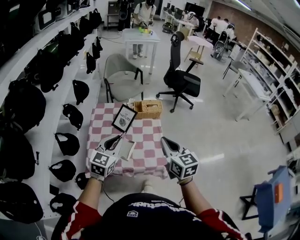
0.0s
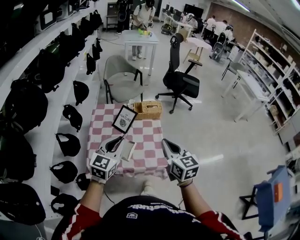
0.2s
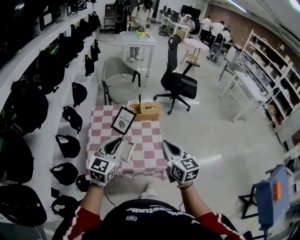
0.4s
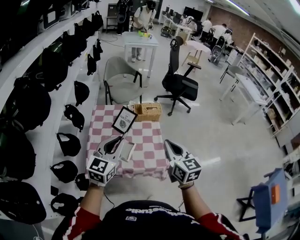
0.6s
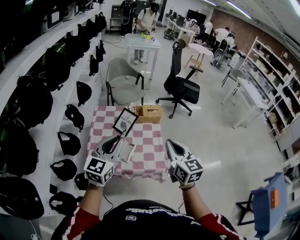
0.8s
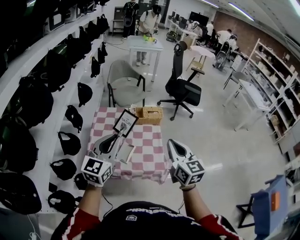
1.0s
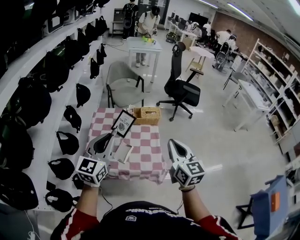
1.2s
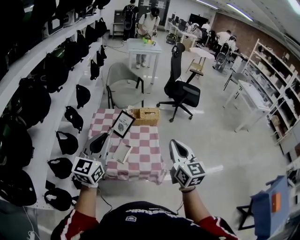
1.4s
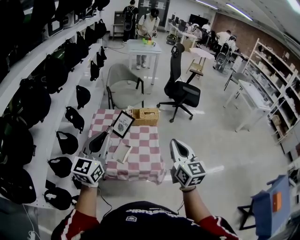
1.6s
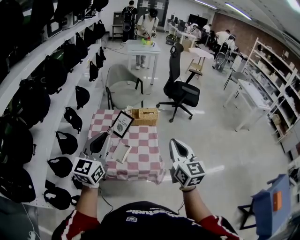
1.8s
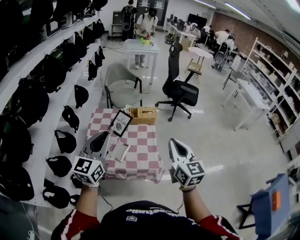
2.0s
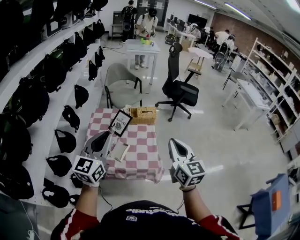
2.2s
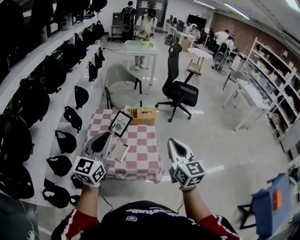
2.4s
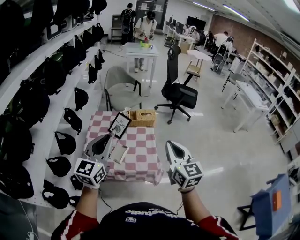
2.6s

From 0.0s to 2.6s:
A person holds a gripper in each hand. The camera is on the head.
From 0.0s to 1.2s: The right gripper is displaced upward by some 5 cm. The left gripper moves upward, some 10 cm.
From 1.2s to 2.6s: The left gripper ends up approximately 5 cm from where it was. Meanwhile the right gripper shifts by approximately 5 cm.

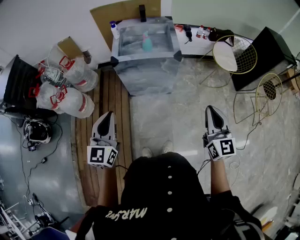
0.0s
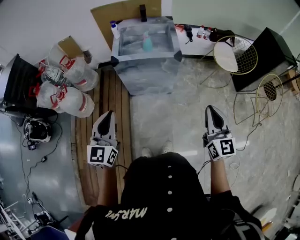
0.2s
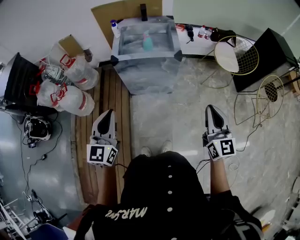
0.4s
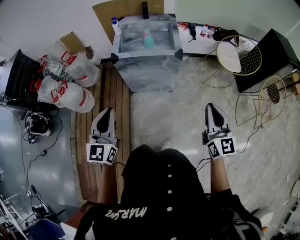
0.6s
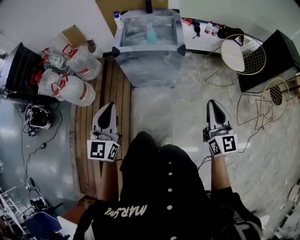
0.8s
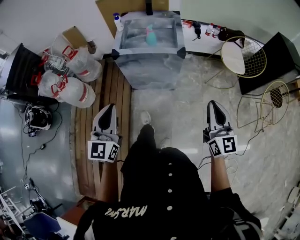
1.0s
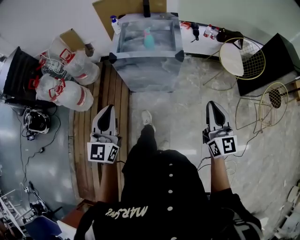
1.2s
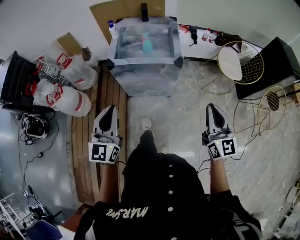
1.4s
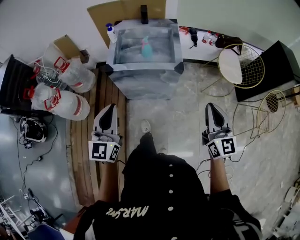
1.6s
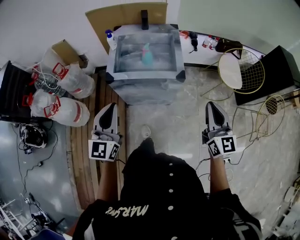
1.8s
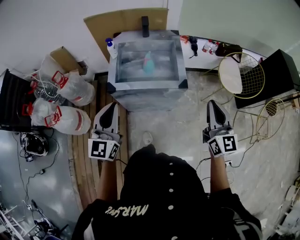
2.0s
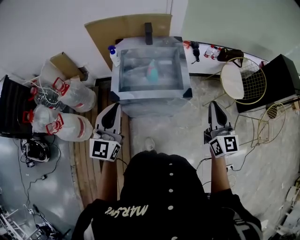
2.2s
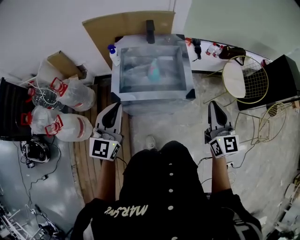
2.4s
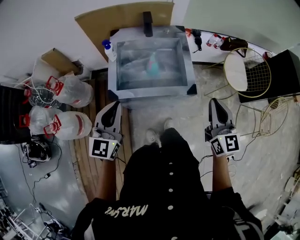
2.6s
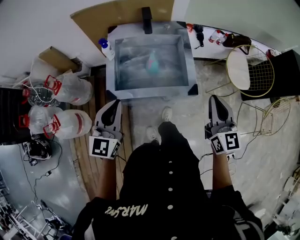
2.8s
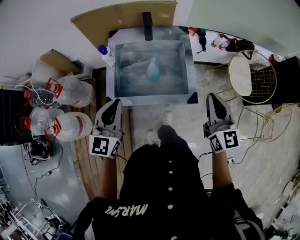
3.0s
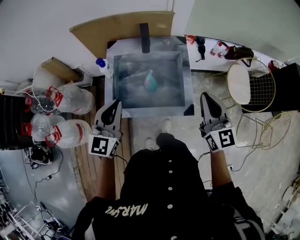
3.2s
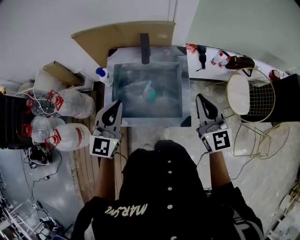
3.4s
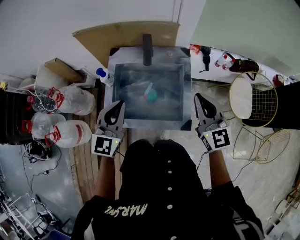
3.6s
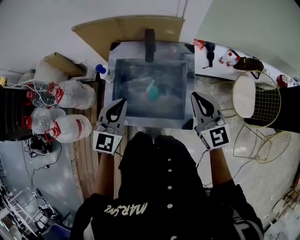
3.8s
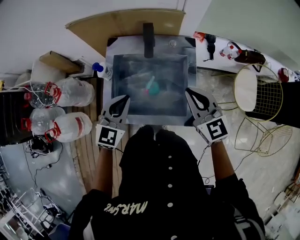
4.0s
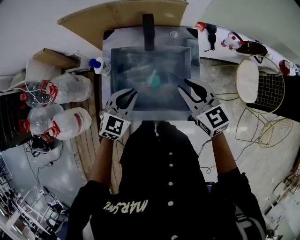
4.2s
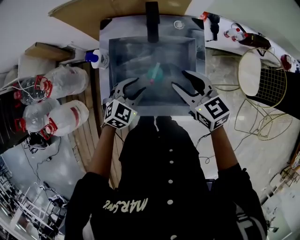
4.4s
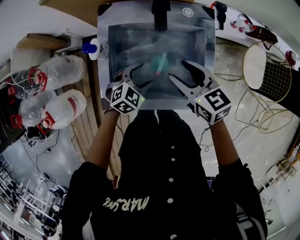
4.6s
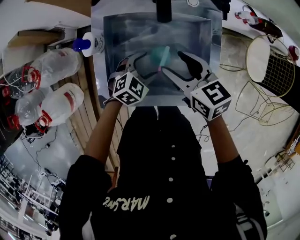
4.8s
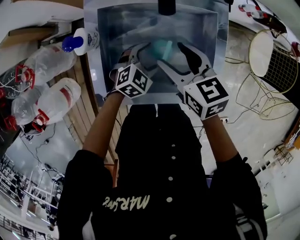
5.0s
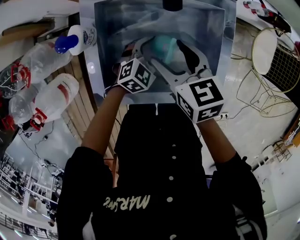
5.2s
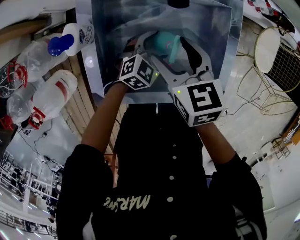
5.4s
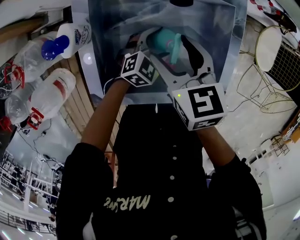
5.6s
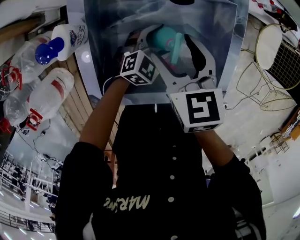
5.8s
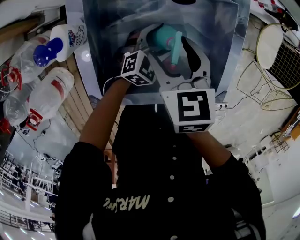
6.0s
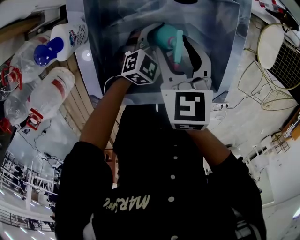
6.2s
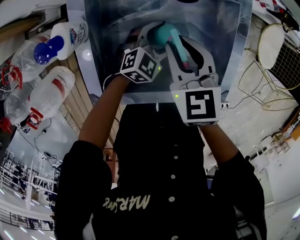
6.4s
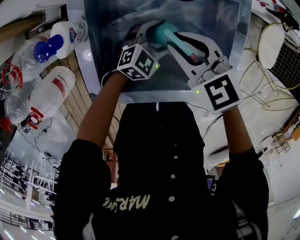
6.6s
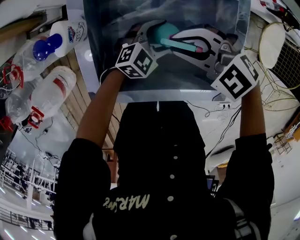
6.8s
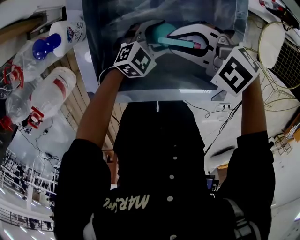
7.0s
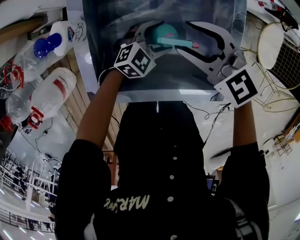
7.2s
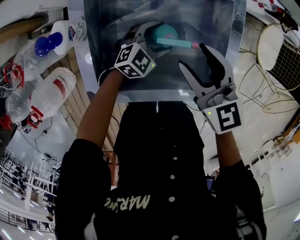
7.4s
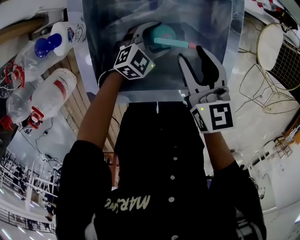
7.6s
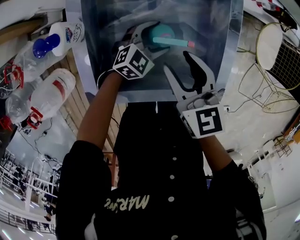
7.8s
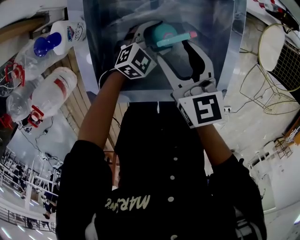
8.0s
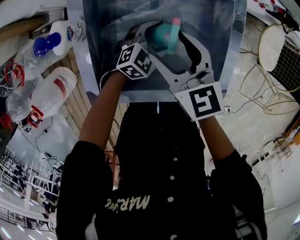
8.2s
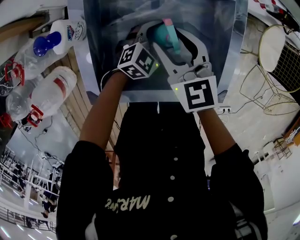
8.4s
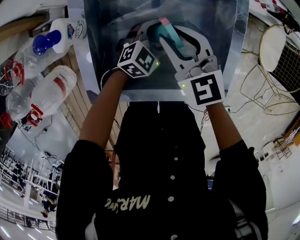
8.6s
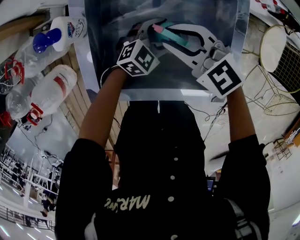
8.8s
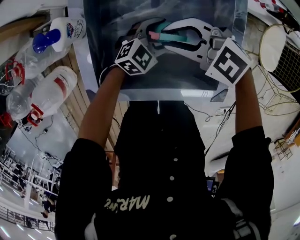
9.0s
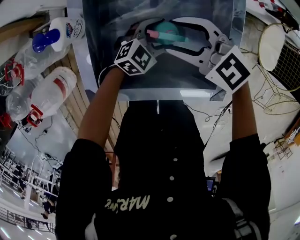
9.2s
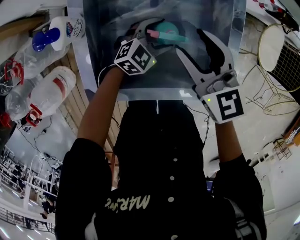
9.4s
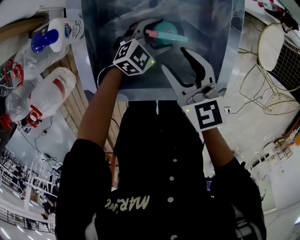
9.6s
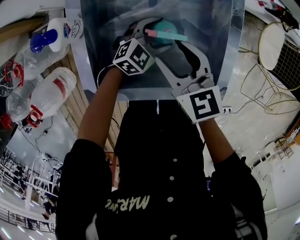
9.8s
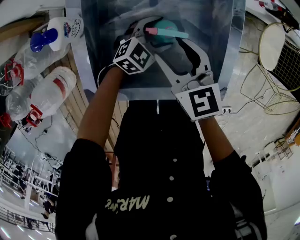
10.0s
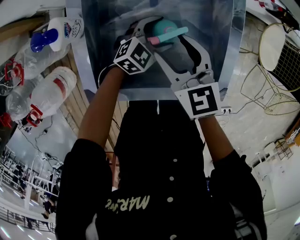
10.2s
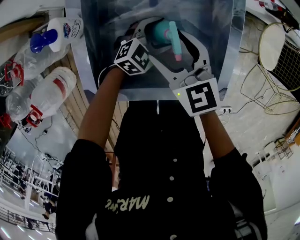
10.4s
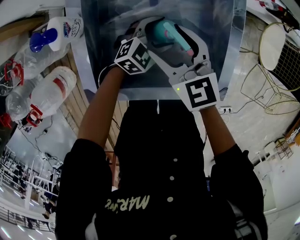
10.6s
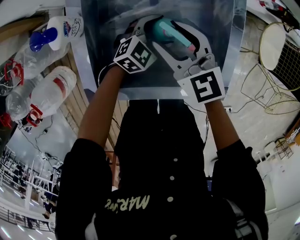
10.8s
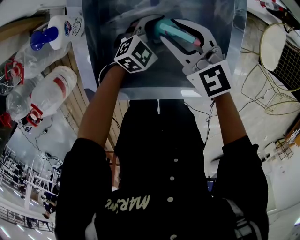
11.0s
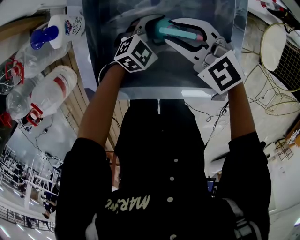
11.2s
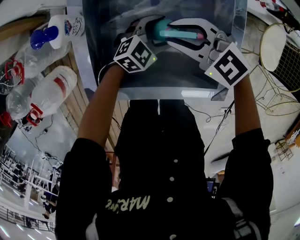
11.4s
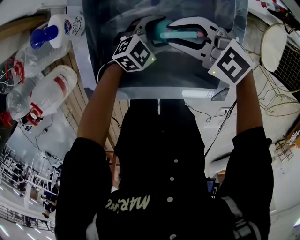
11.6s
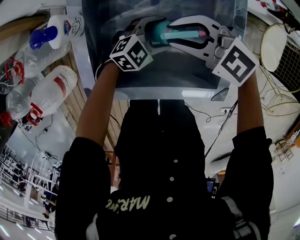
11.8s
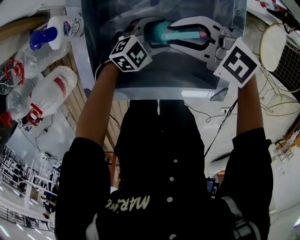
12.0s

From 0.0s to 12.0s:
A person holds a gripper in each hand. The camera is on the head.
From 0.0s to 1.6s: The right gripper goes approximately 15 cm forward. The left gripper is displaced forward and to the right by roughly 15 cm.
From 1.6s to 3.0s: Both grippers travel together forward, about 30 cm.
From 3.0s to 4.4s: The left gripper shifts some 25 cm downward and forward, points its fingers approximately 30 degrees further downward, and opens its fingers. The right gripper is displaced forward, to the left and downward by some 25 cm, changes its angle by some 40 degrees, and opens its fingers.
From 4.4s to 6.0s: The left gripper travels downward by roughly 20 cm, and opens. Meanwhile the right gripper moves downward and to the left, about 15 cm, and turns by approximately 30 degrees.
From 6.0s to 7.6s: The right gripper ends up roughly 10 cm from where it was, and closes its fingers.
From 7.6s to 9.0s: The right gripper shifts by about 10 cm, swivels about 70 degrees, and opens and closes again.
From 9.0s to 10.4s: The right gripper swivels about 50 degrees, and opens up.
From 10.4s to 12.0s: The right gripper rotates some 50 degrees, and closes.

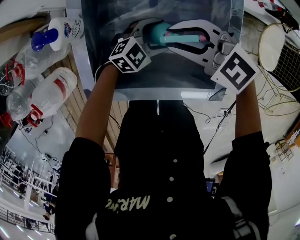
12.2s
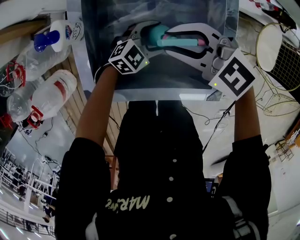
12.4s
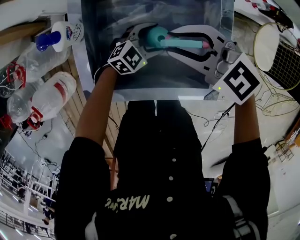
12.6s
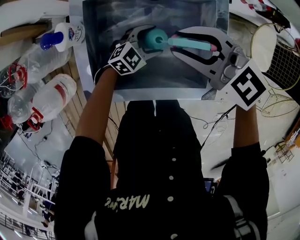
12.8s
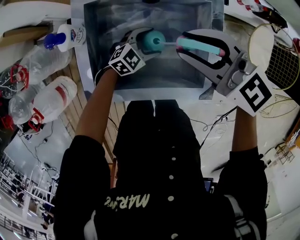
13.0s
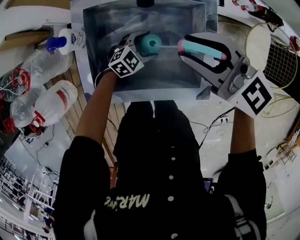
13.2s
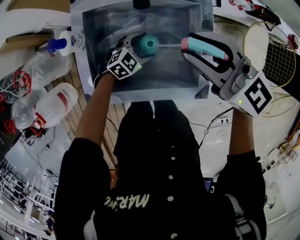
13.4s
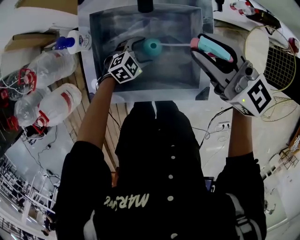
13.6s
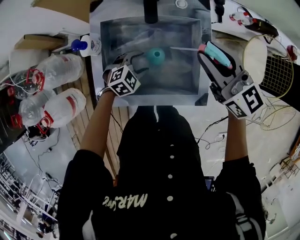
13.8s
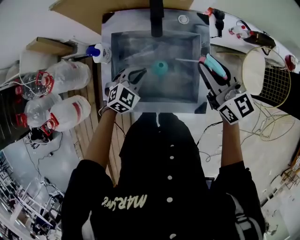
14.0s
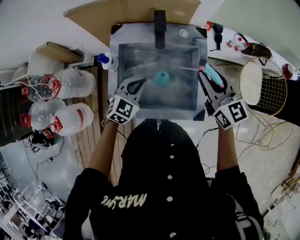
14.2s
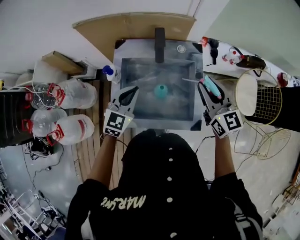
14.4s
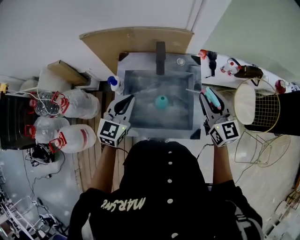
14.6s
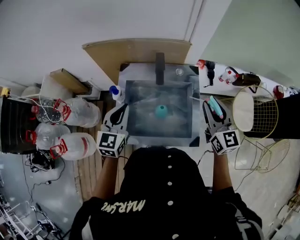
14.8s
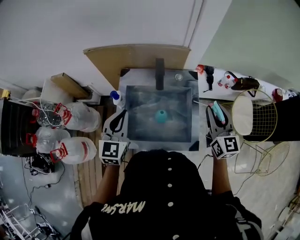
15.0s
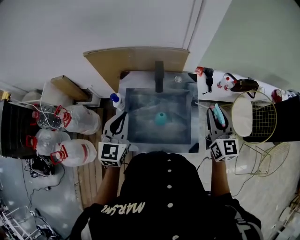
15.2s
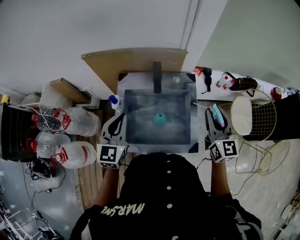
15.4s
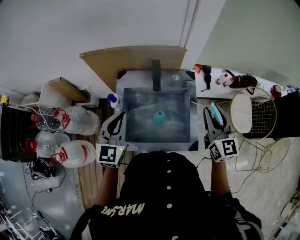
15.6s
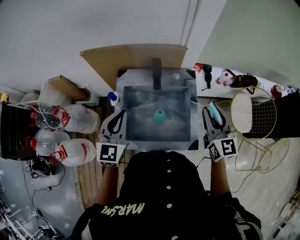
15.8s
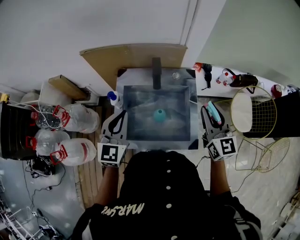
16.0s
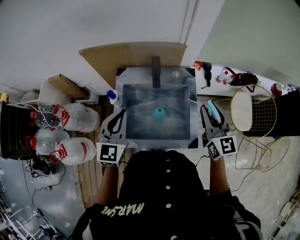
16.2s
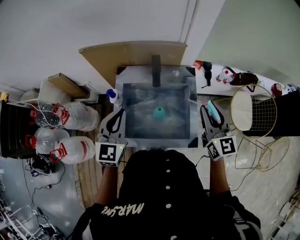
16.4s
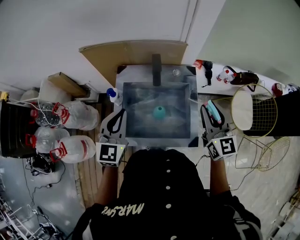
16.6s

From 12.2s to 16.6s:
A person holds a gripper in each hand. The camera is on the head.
From 12.2s to 13.6s: The right gripper moves upward, roughly 20 cm, and swivels roughly 40 degrees.
From 13.6s to 15.2s: The left gripper moves upward, roughly 35 cm, angles its fingers upward, by some 40 degrees, and closes its fingers. Meanwhile the right gripper travels to the right and upward by roughly 15 cm, and changes its angle by approximately 40 degrees.
From 15.2s to 16.6s: The grippers move only a little.

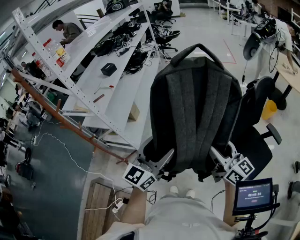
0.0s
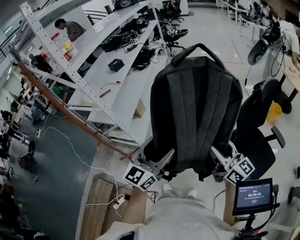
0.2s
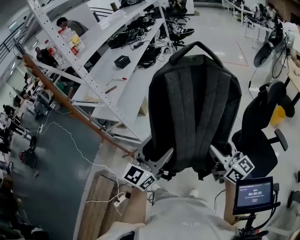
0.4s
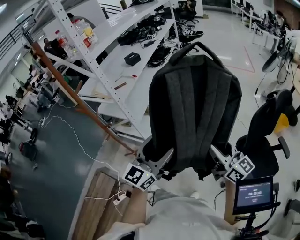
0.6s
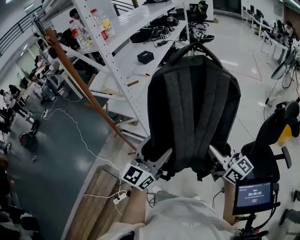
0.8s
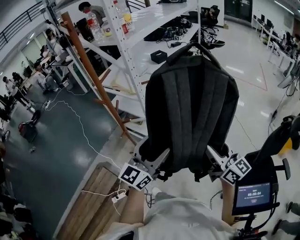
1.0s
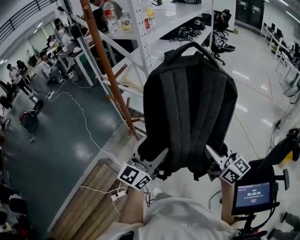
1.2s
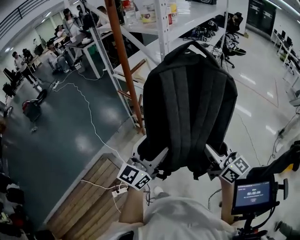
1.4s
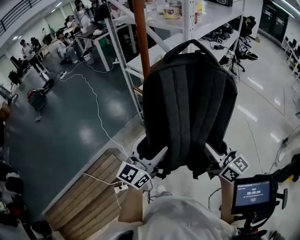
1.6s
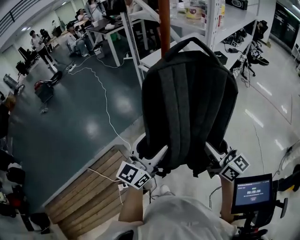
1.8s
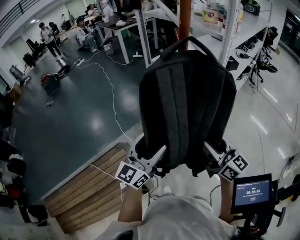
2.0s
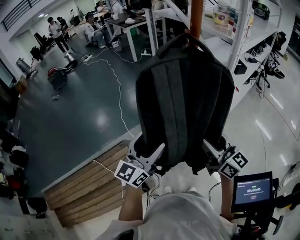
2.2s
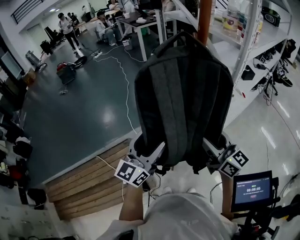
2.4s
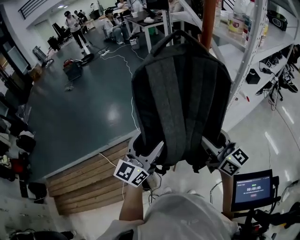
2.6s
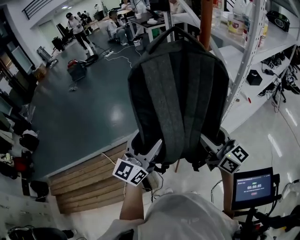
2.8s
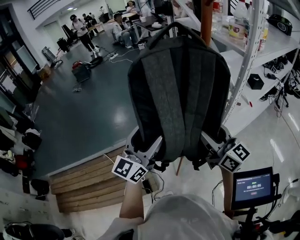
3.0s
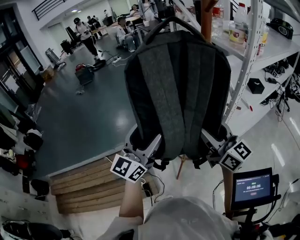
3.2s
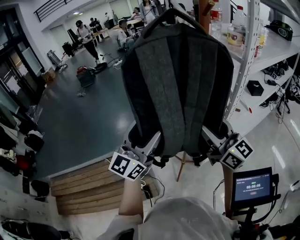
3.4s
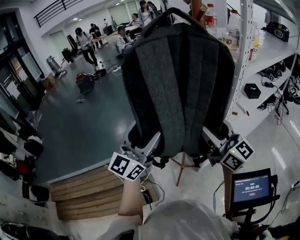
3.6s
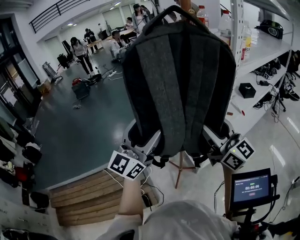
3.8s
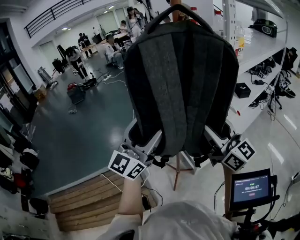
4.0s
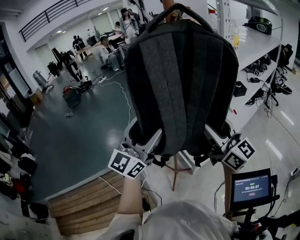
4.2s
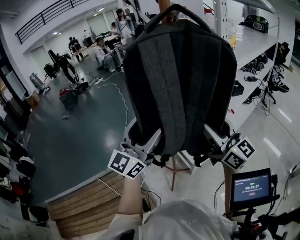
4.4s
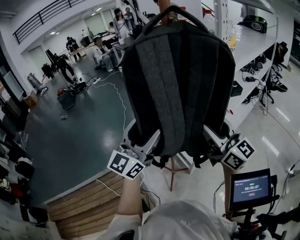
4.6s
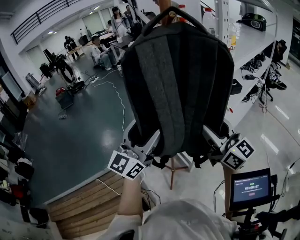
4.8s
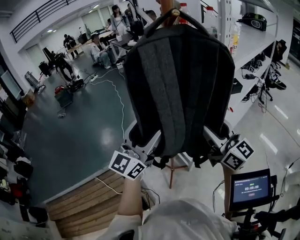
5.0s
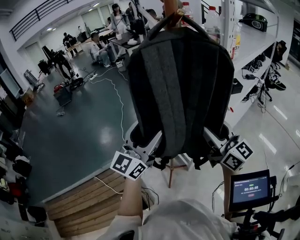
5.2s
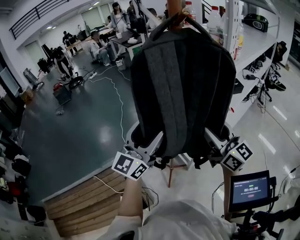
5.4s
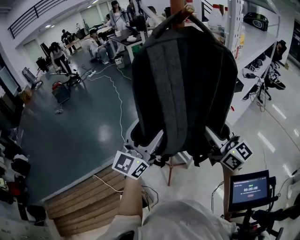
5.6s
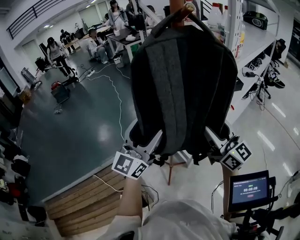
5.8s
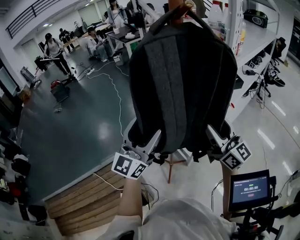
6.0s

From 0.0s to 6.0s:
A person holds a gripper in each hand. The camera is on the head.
From 0.0s to 1.6s: The two grippers travel together, approximately 50 cm. The right gripper turns by some 30 degrees. Meanwhile the left gripper turns by about 30 degrees.
From 1.6s to 3.0s: The right gripper changes place by about 20 cm, and rotates about 30 degrees, while the left gripper ends up roughly 15 cm from where it was, and changes its angle by some 30 degrees.
From 3.0s to 4.4s: The grippers both shift upward and to the right by approximately 10 cm.
From 4.4s to 6.0s: The grippers stay close to where they were, moving slightly.
